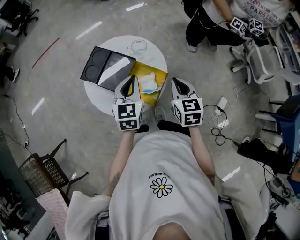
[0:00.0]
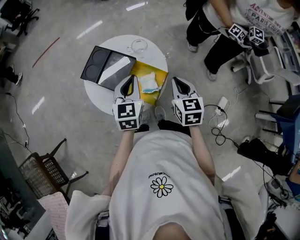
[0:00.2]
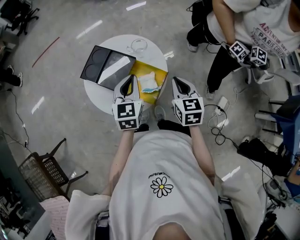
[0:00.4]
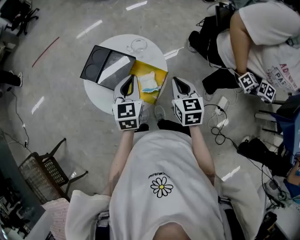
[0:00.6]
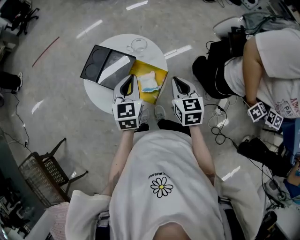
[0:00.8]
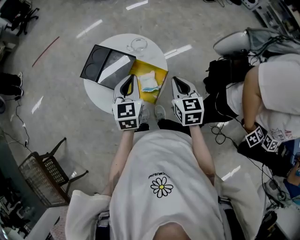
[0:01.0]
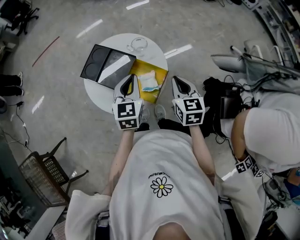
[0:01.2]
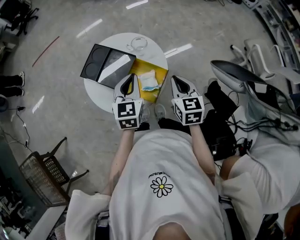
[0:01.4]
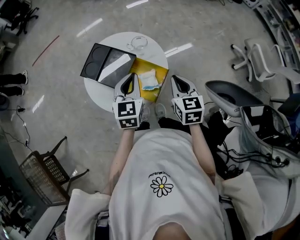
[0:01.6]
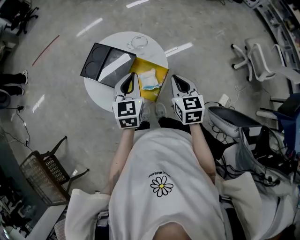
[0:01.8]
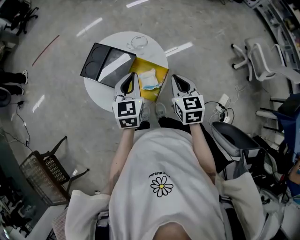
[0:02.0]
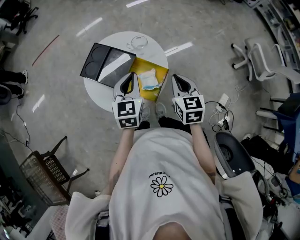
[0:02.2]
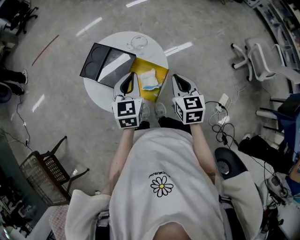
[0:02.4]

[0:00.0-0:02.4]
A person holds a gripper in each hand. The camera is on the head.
0:00.0 to 0:02.4: The two grippers keep their place.

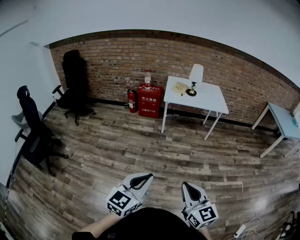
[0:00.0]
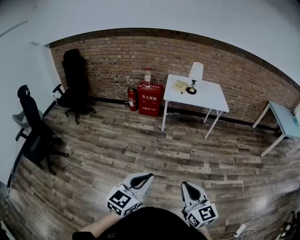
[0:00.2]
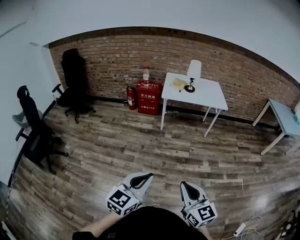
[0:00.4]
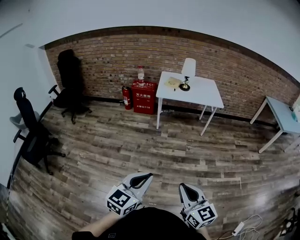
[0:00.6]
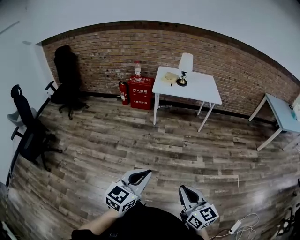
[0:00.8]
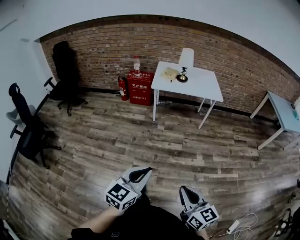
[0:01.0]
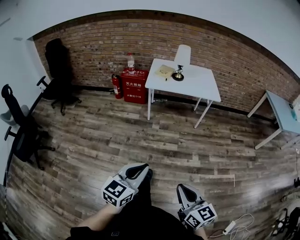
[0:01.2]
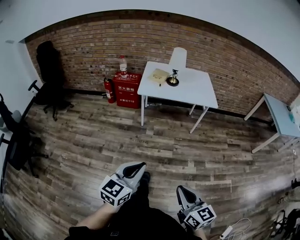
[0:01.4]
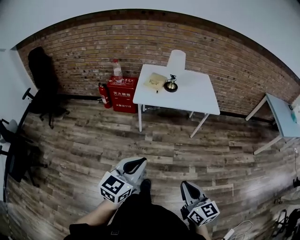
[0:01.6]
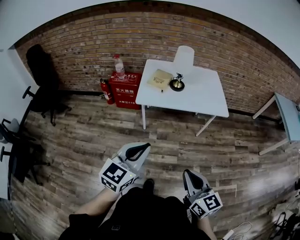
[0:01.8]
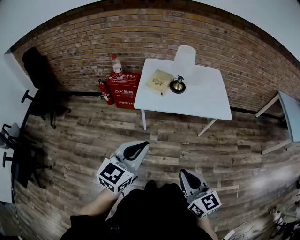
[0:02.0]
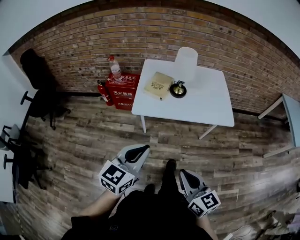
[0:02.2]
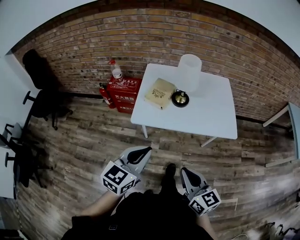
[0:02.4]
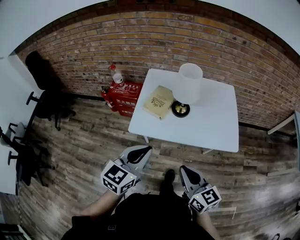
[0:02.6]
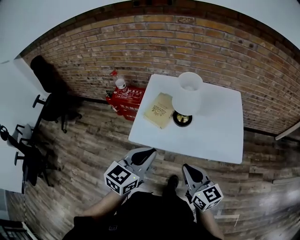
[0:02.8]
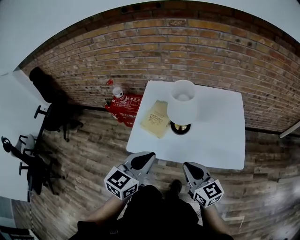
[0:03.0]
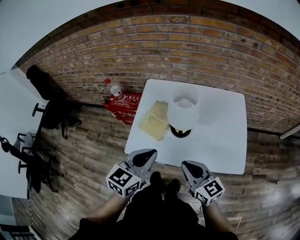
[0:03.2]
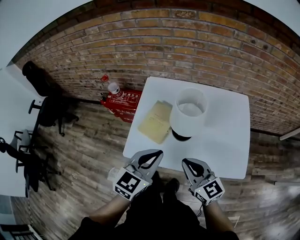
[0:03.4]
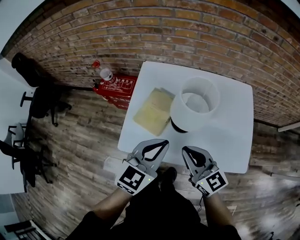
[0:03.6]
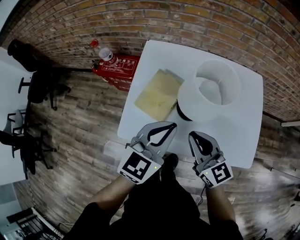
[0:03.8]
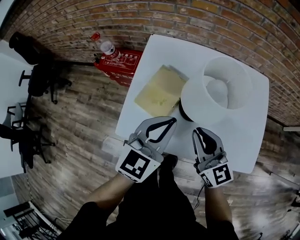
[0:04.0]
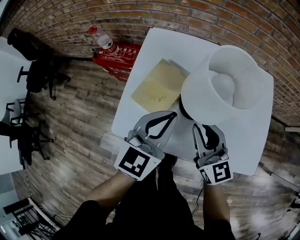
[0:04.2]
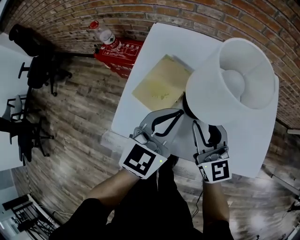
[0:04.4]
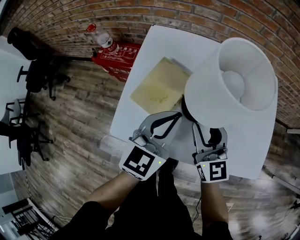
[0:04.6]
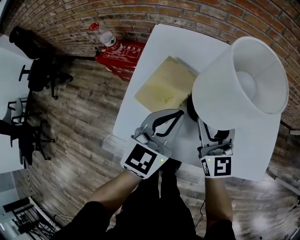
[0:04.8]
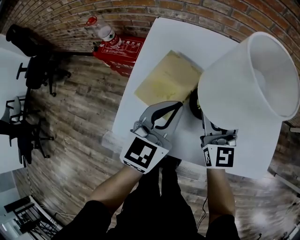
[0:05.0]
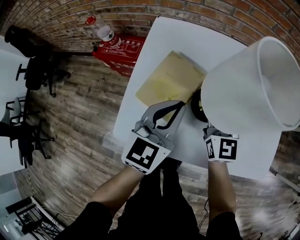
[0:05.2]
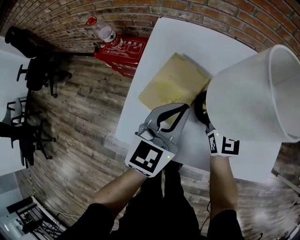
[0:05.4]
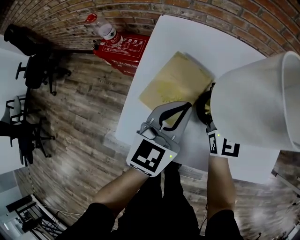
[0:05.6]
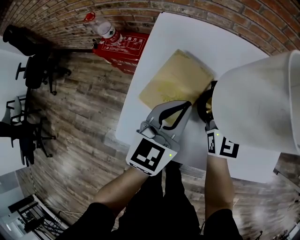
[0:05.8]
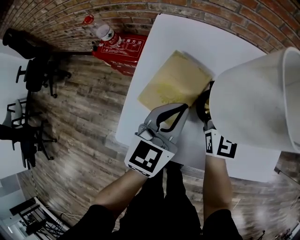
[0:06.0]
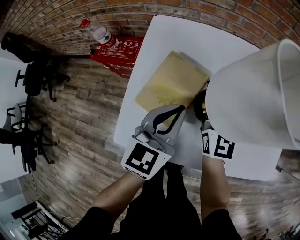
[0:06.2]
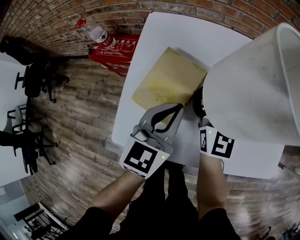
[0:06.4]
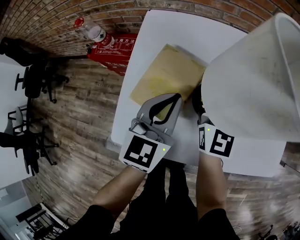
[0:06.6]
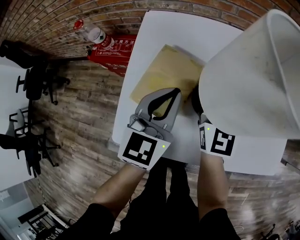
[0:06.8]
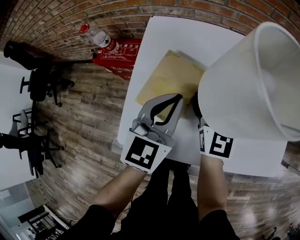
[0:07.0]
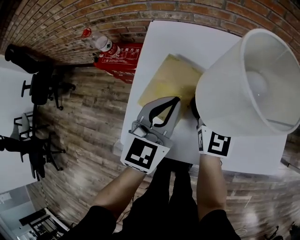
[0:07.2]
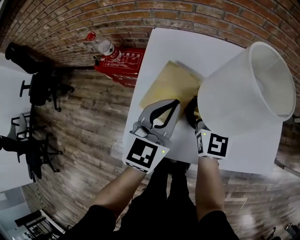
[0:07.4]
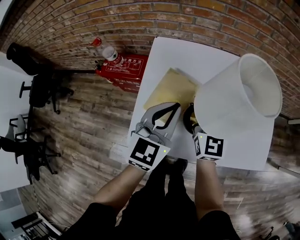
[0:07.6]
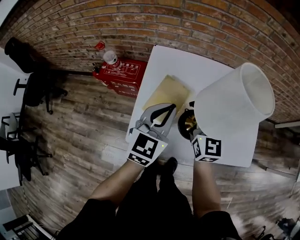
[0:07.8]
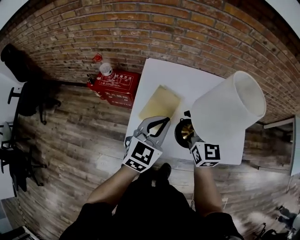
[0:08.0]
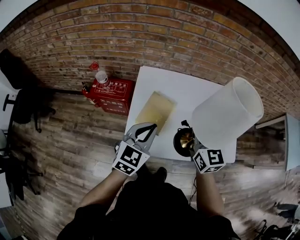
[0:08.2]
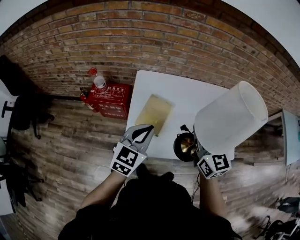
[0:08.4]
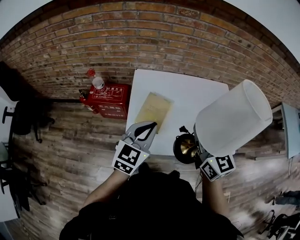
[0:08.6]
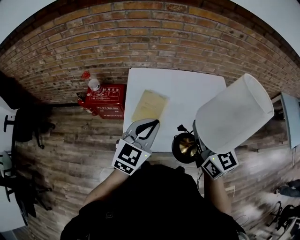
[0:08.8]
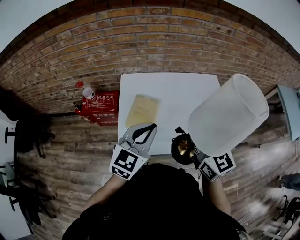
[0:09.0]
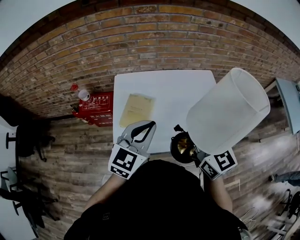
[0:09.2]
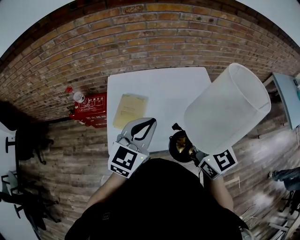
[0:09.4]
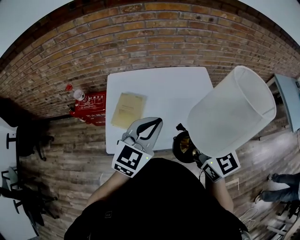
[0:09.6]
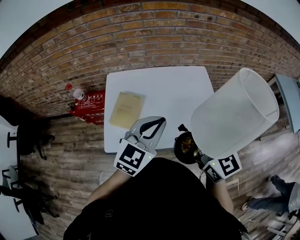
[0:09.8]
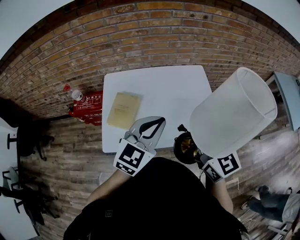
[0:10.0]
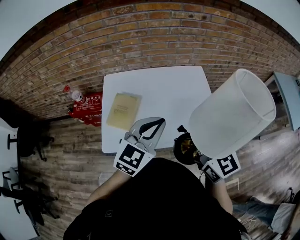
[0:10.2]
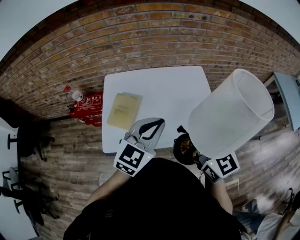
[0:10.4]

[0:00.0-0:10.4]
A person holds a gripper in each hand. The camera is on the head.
0:00.0 to 0:01.4: The two grippers go about 25 cm forward and to the right.
0:01.4 to 0:03.0: The two grippers travel together, forward, about 70 cm.
0:03.0 to 0:04.4: The grippers both shift forward and downward by roughly 25 cm. The right gripper opens up.
0:04.4 to 0:06.0: The right gripper heads forward, covering roughly 10 cm, rotates approximately 30 degrees, and opens, then closes again. Meanwhile the left gripper moves downward, roughly 5 cm.
0:06.0 to 0:07.4: The grippers make only small movements.
0:07.4 to 0:09.0: The grippers both shift upward and backward by some 25 cm.
0:09.0 to 0:10.4: Both grippers travel together to the right, about 15 cm.

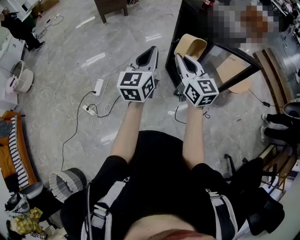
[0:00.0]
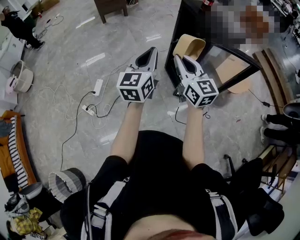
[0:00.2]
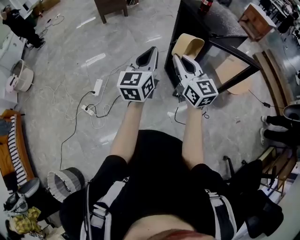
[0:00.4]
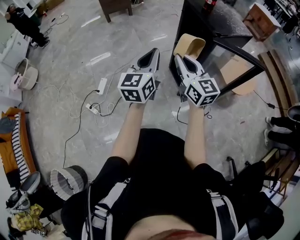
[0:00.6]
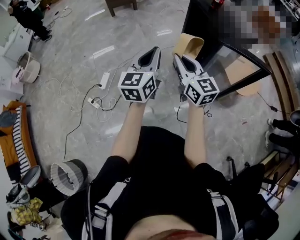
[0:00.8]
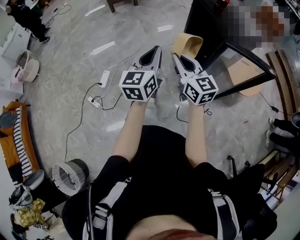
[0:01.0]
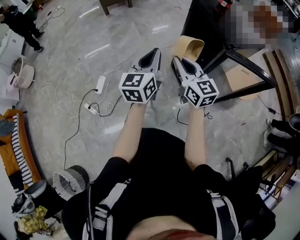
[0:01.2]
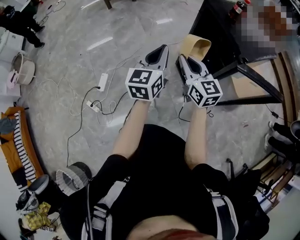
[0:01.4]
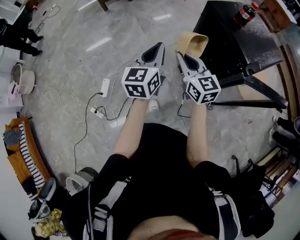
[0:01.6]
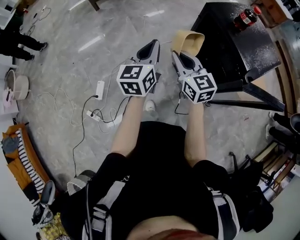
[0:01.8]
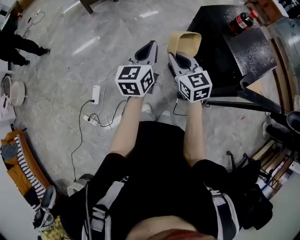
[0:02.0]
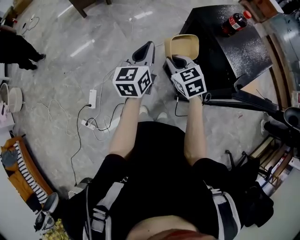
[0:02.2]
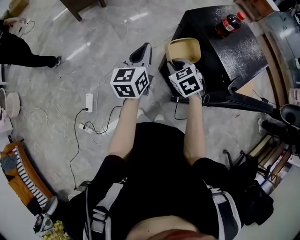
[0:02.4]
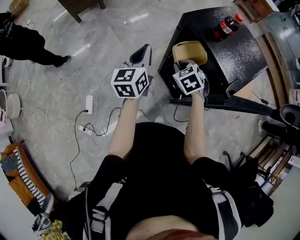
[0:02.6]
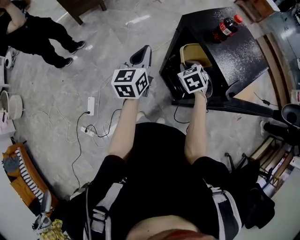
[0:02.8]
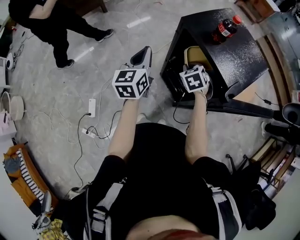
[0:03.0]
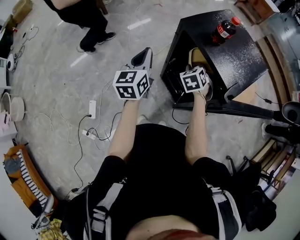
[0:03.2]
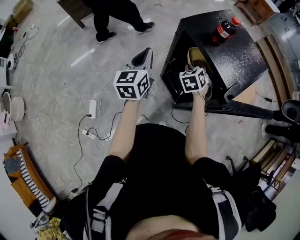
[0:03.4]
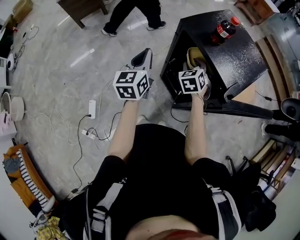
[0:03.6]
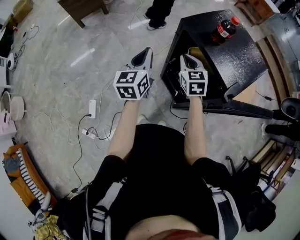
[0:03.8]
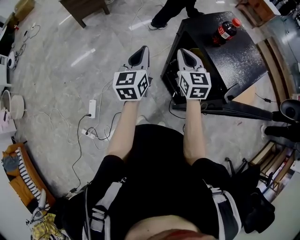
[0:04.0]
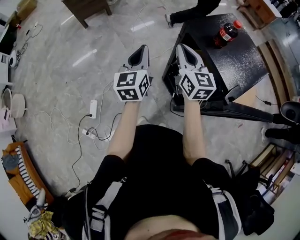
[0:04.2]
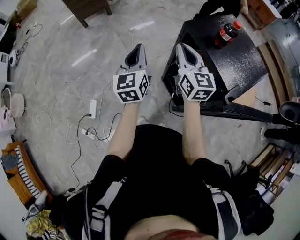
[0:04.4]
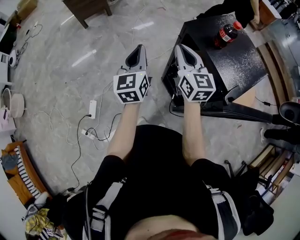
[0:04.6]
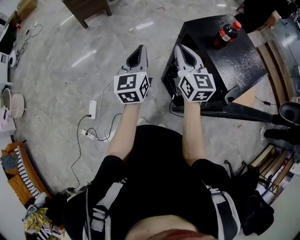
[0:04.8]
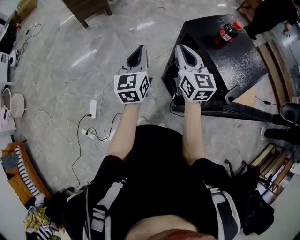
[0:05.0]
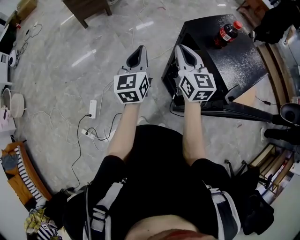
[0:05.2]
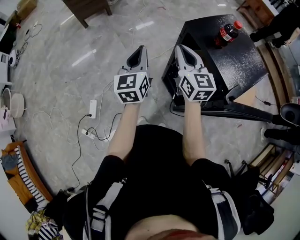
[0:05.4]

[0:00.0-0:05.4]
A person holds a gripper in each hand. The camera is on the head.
0:00.0 to 0:01.4: The right gripper shifts roughly 20 cm forward and downward, while the left gripper moves forward, about 20 cm.
0:01.4 to 0:02.8: The left gripper shifts about 20 cm forward. Meanwhile the right gripper travels forward, downward and to the right by roughly 25 cm, and points its fingers roughly 50 degrees further downward.
0:02.8 to 0:04.0: The right gripper shifts some 10 cm upward, tips its fingers upward by approximately 40 degrees, and opens, then closes once more.
0:04.0 to 0:05.4: The right gripper shifts about 5 cm upward.

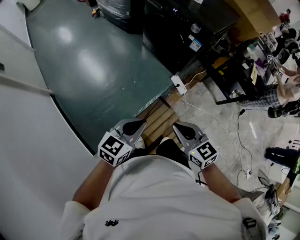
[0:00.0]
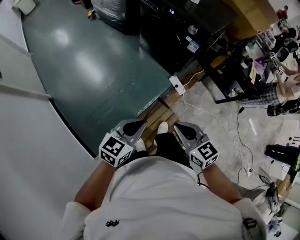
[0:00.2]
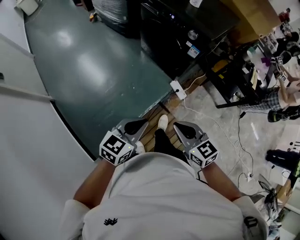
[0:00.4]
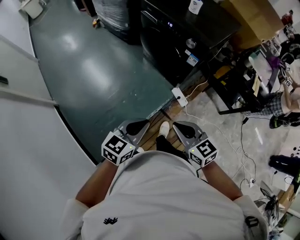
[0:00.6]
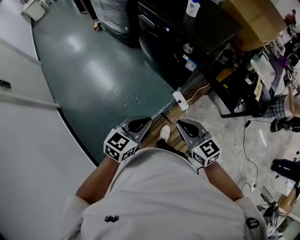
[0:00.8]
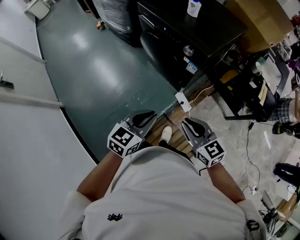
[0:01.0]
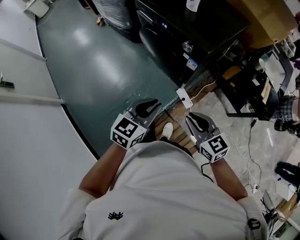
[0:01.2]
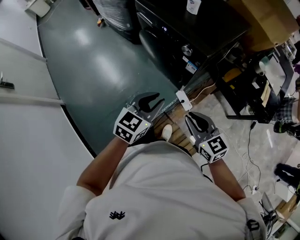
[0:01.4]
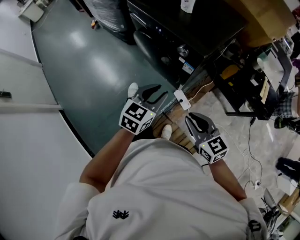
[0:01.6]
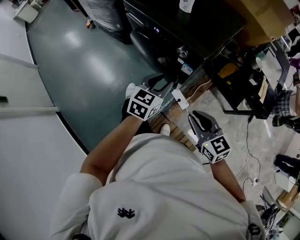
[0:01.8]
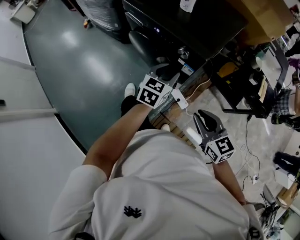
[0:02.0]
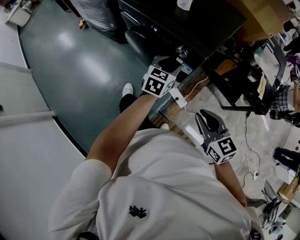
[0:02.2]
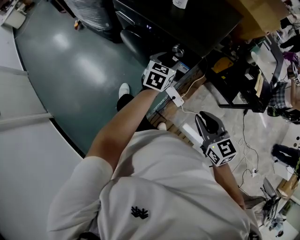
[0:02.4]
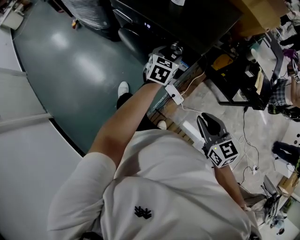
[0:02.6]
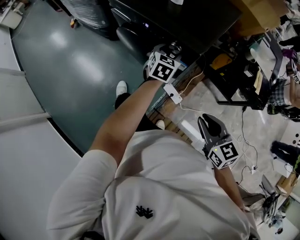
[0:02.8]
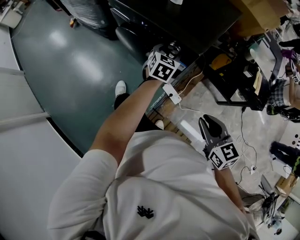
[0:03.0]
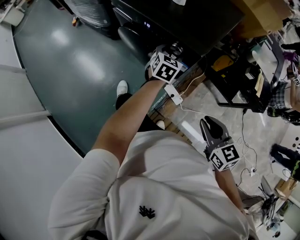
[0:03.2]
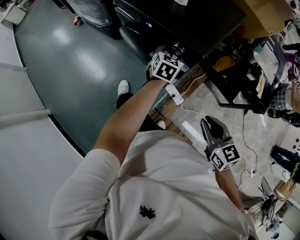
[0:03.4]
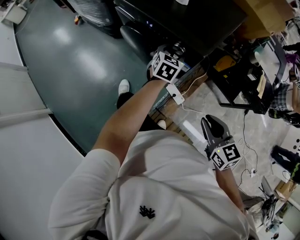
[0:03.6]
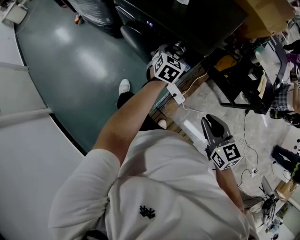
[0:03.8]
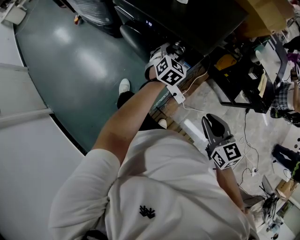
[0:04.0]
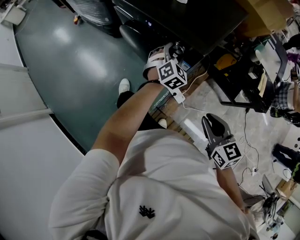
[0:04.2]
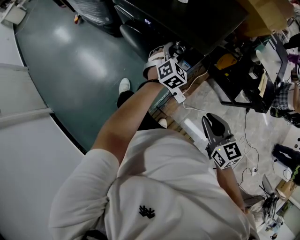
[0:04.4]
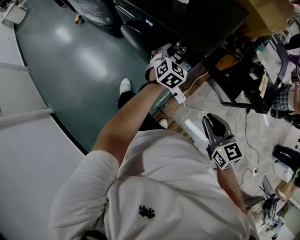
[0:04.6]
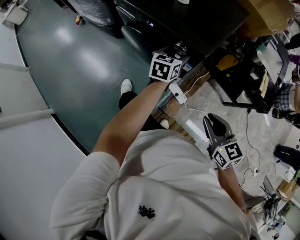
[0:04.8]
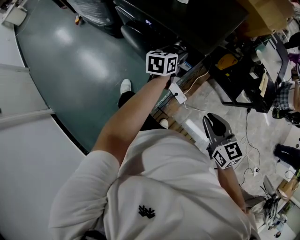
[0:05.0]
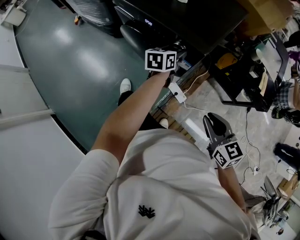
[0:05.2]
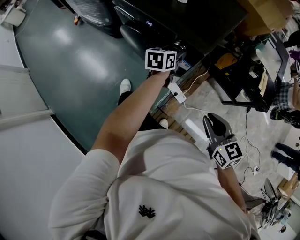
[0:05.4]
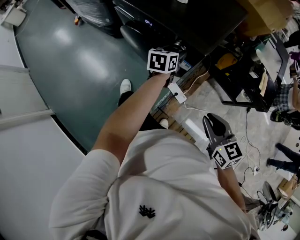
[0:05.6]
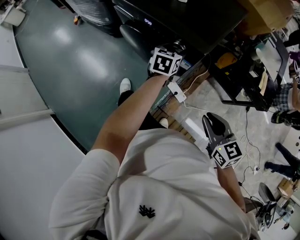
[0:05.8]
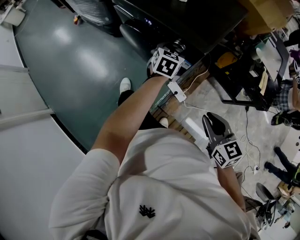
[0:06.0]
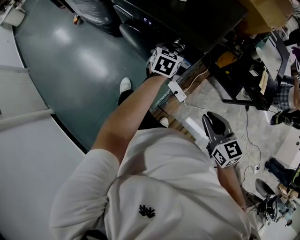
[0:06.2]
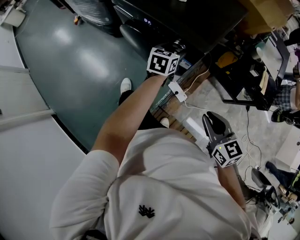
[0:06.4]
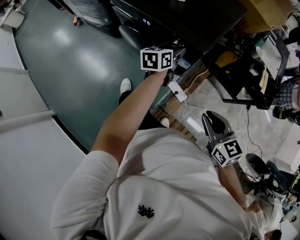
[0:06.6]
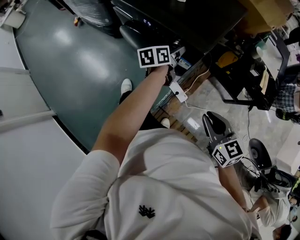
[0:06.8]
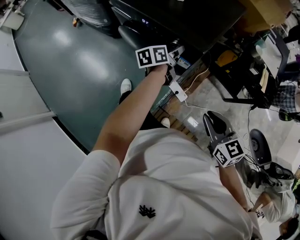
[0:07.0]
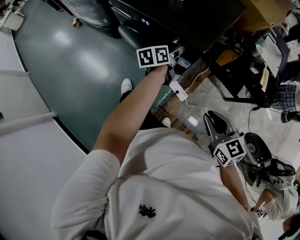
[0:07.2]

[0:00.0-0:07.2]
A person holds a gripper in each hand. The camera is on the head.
0:00.0 to 0:01.4: The grippers both shift forward and to the right by about 30 cm.
0:01.4 to 0:02.8: The right gripper moves to the right, some 5 cm; the left gripper is displaced forward by approximately 30 cm, and opens.
0:02.8 to 0:04.4: The left gripper turns by about 30 degrees.
0:04.4 to 0:05.8: The left gripper rolls counterclockwise, seen from behind, by roughly 40 degrees.
0:05.8 to 0:07.2: The left gripper rotates about 30 degrees.
